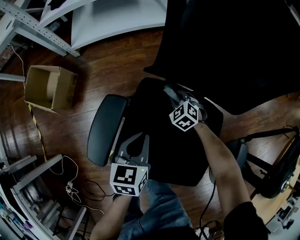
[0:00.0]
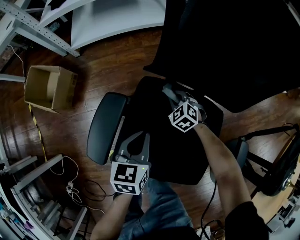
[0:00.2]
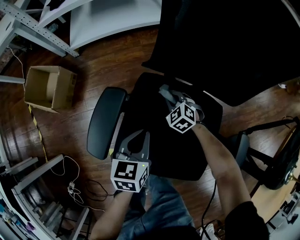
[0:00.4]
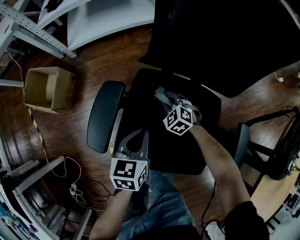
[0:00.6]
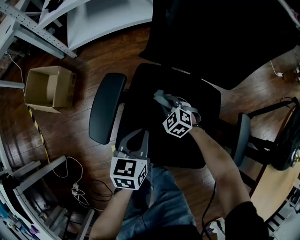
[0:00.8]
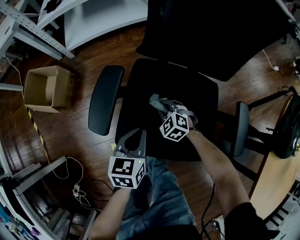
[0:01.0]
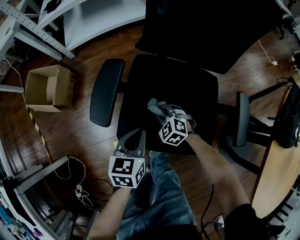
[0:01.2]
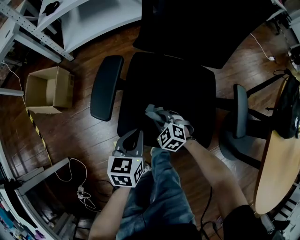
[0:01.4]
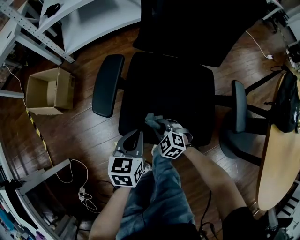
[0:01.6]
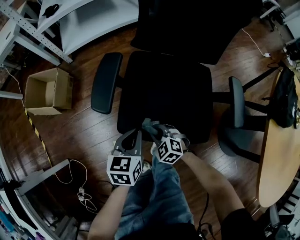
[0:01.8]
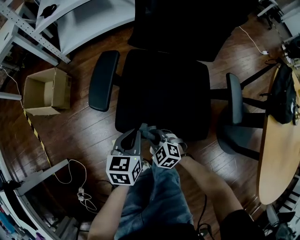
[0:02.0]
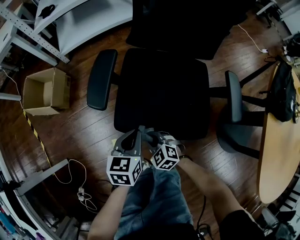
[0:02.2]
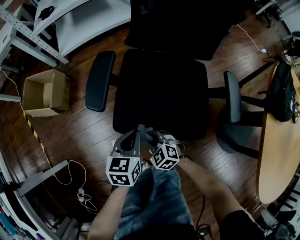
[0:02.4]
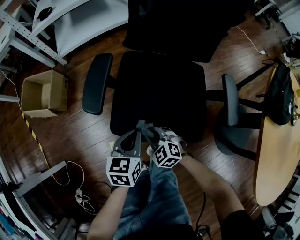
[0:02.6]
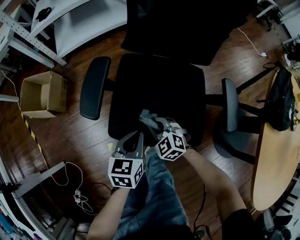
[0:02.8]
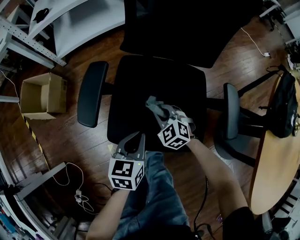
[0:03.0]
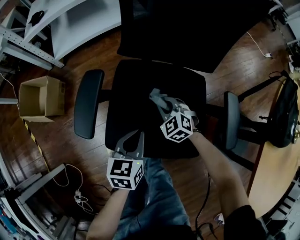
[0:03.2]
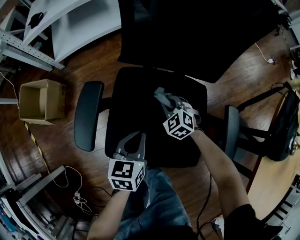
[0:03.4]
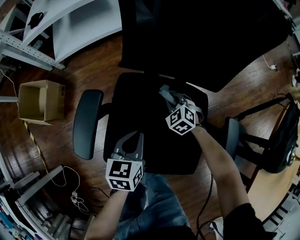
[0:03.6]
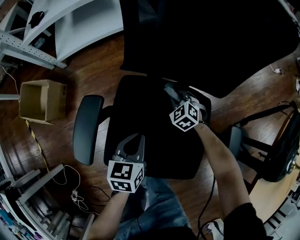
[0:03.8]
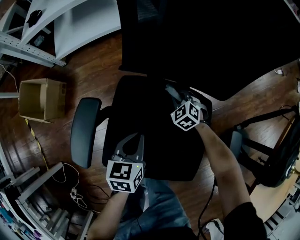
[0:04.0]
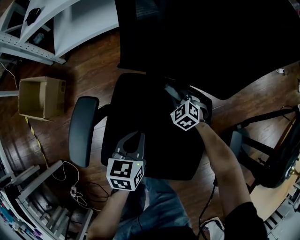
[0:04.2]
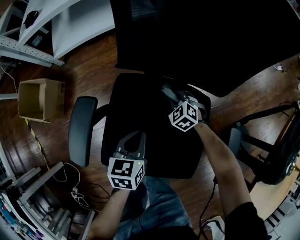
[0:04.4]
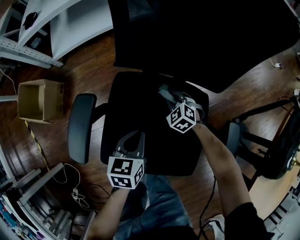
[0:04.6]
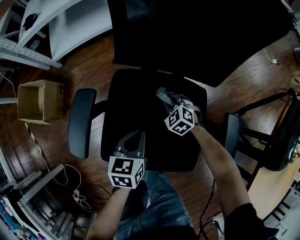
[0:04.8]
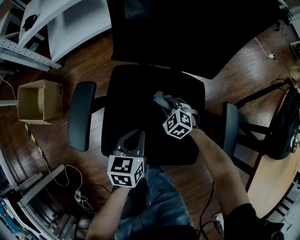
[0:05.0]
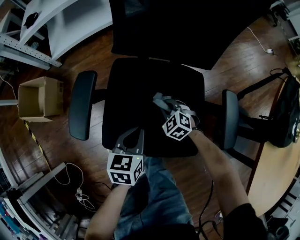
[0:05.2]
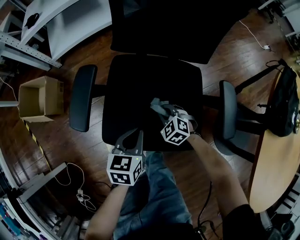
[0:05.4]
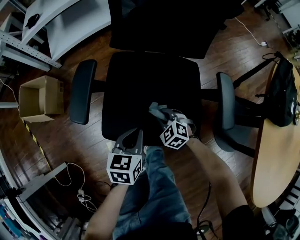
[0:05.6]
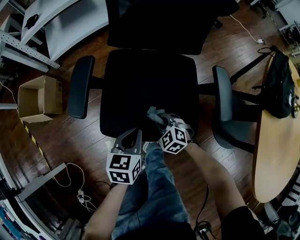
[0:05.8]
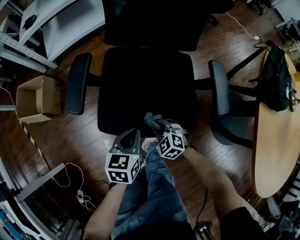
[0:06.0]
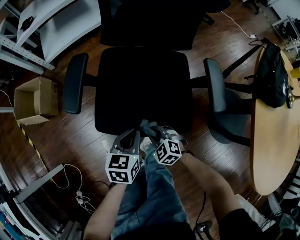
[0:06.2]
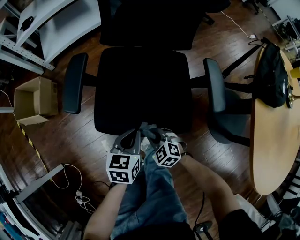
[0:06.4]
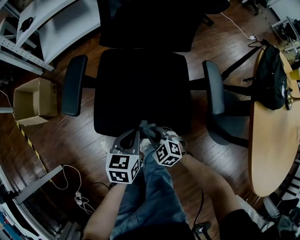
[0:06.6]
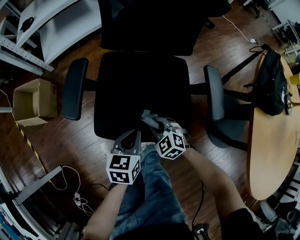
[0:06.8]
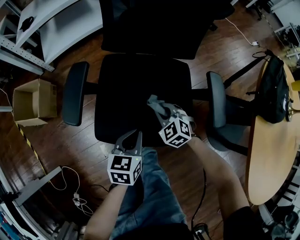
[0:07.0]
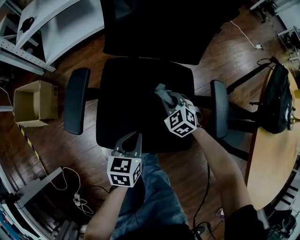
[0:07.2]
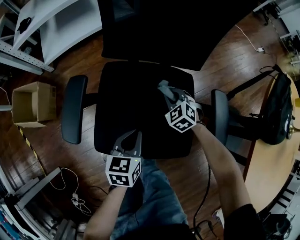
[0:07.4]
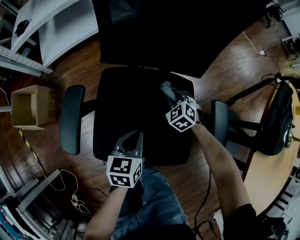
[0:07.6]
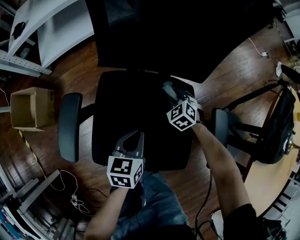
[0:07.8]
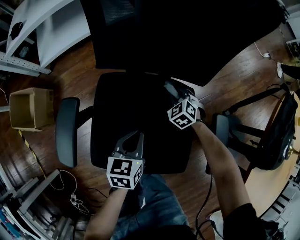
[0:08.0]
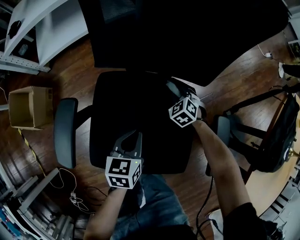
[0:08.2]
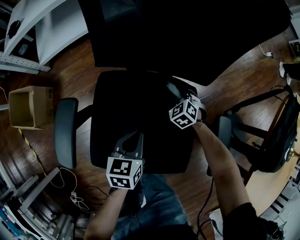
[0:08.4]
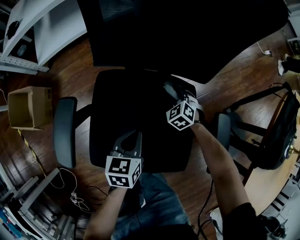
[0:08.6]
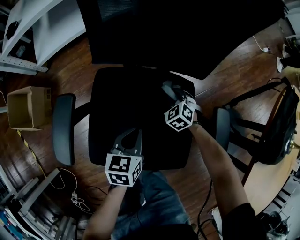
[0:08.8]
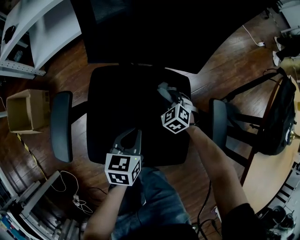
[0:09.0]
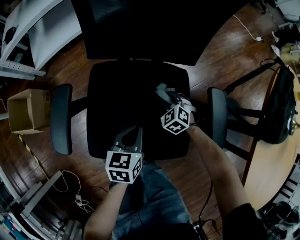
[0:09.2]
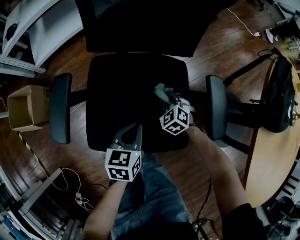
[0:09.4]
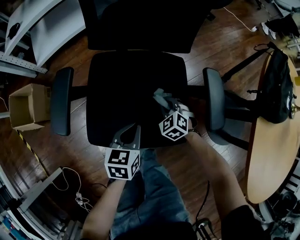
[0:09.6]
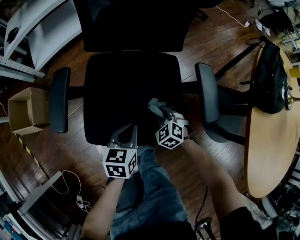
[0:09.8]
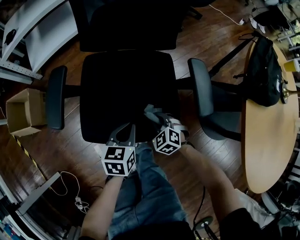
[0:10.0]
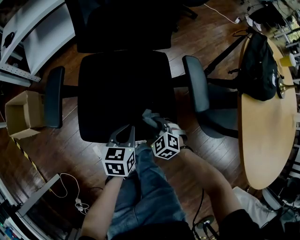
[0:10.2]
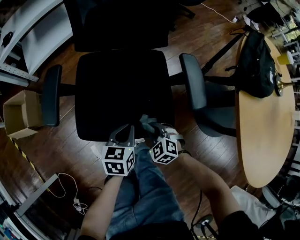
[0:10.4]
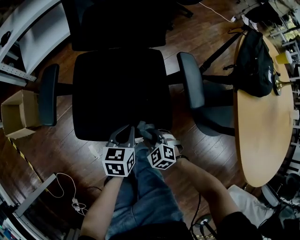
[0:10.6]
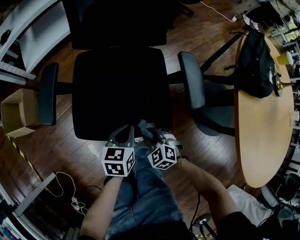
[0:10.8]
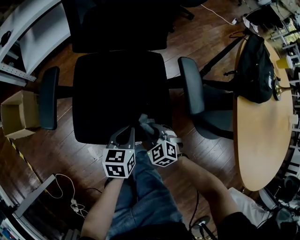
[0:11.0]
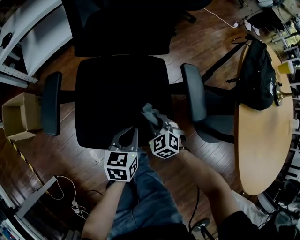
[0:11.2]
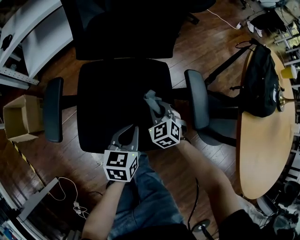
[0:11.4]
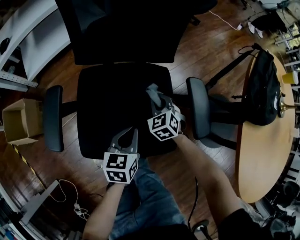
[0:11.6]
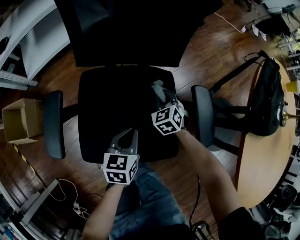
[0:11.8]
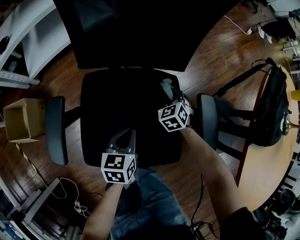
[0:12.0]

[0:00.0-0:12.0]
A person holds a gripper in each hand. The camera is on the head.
0:00.0 to 0:01.6: The left gripper moves backward, roughly 20 cm; the right gripper shifts approximately 30 cm backward.
0:01.6 to 0:03.0: The left gripper is displaced to the right by approximately 5 cm. The right gripper shifts roughly 10 cm forward and to the right.
0:03.0 to 0:04.4: The left gripper travels forward by roughly 15 cm, while the right gripper moves forward, to the right and downward, some 25 cm.
0:04.4 to 0:06.0: The right gripper goes about 35 cm backward, while the left gripper travels backward by approximately 20 cm.
0:06.0 to 0:07.6: The left gripper moves forward, some 15 cm. The right gripper heads forward and to the right, covering roughly 30 cm.
0:07.6 to 0:09.0: The right gripper moves approximately 5 cm forward and comes back.
0:09.0 to 0:10.4: The left gripper travels backward by about 15 cm. Meanwhile the right gripper heads backward, covering some 30 cm.
0:10.4 to 0:12.0: The left gripper shifts approximately 15 cm forward. Meanwhile the right gripper moves forward, approximately 35 cm, and changes its angle by about 20 degrees.

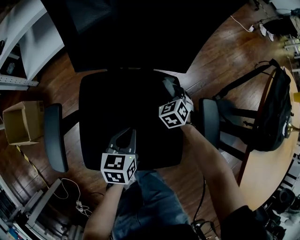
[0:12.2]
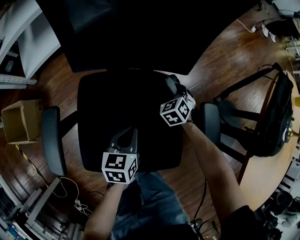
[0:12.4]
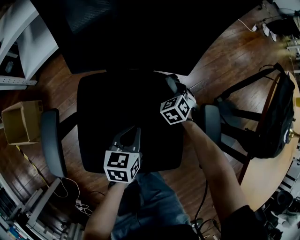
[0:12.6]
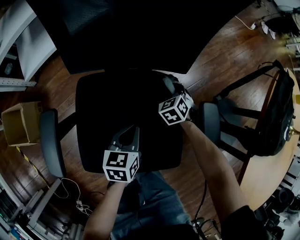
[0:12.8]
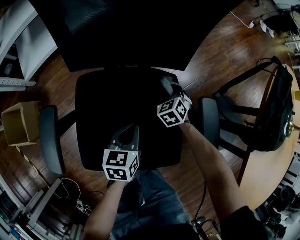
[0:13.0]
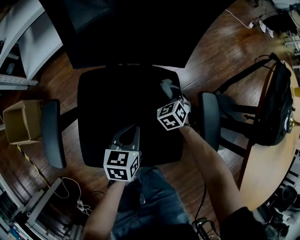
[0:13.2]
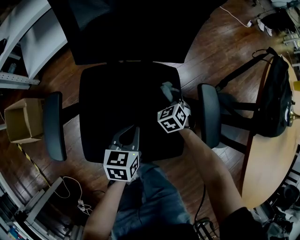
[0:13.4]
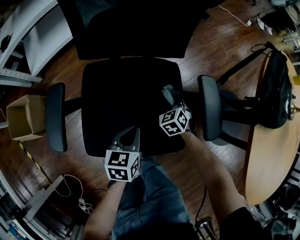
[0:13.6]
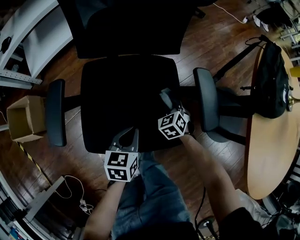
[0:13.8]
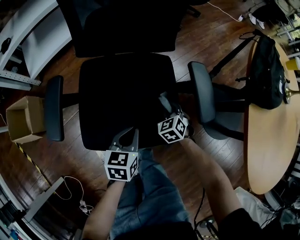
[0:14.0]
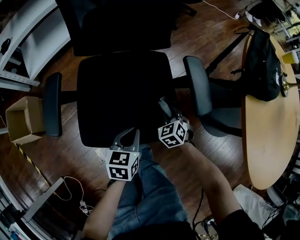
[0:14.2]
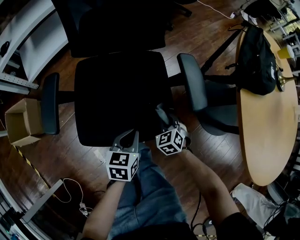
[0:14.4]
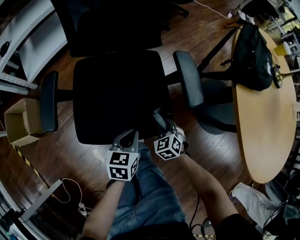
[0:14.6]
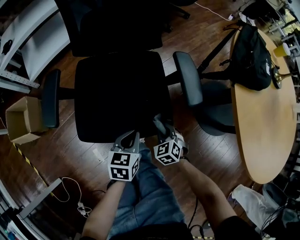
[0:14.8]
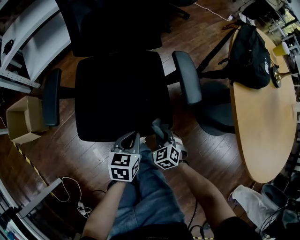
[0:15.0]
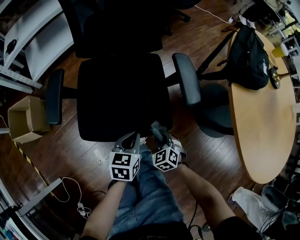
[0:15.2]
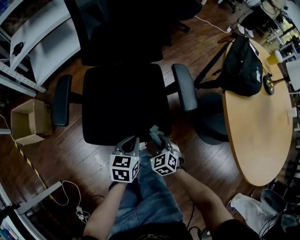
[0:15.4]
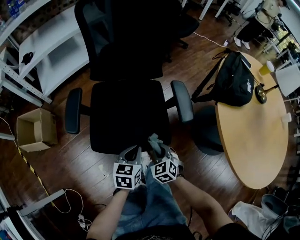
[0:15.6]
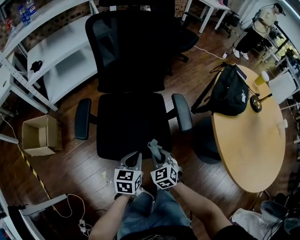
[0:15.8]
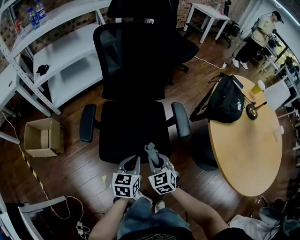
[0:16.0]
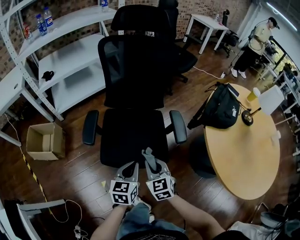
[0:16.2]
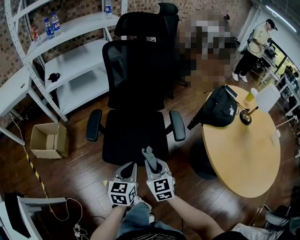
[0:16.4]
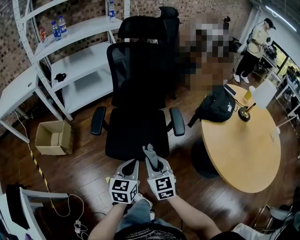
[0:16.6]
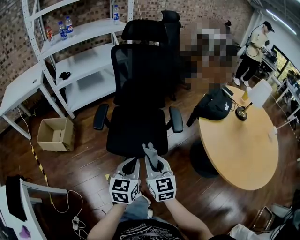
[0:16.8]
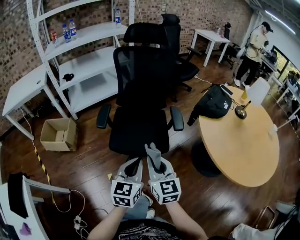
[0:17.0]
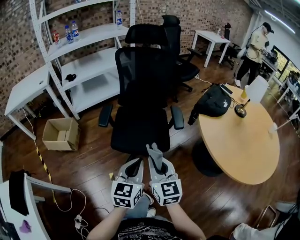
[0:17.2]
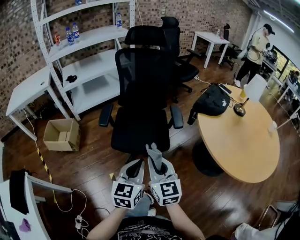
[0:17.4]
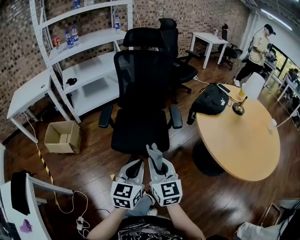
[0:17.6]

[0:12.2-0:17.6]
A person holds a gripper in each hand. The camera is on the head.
0:12.2 to 0:13.6: The right gripper moves backward, approximately 10 cm. Meanwhile the left gripper travels backward by roughly 5 cm.
0:13.6 to 0:15.0: The left gripper heads backward and to the right, covering some 15 cm. Meanwhile the right gripper shifts roughly 25 cm backward.
0:15.0 to 0:16.2: Both grippers travel together upward, about 25 cm. The right gripper rotates roughly 30 degrees.
0:16.2 to 0:17.6: Both grippers travel together backward and upward, roughly 30 cm. The right gripper swivels about 30 degrees.

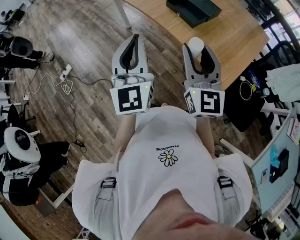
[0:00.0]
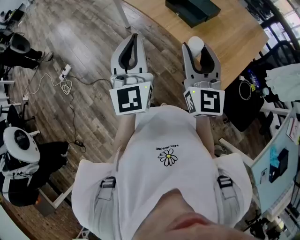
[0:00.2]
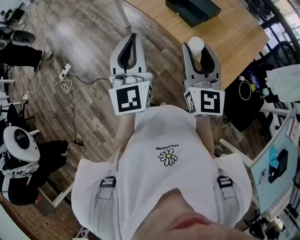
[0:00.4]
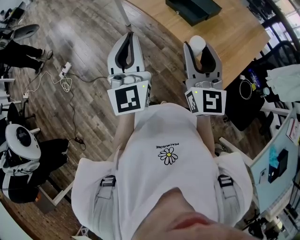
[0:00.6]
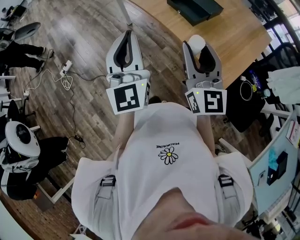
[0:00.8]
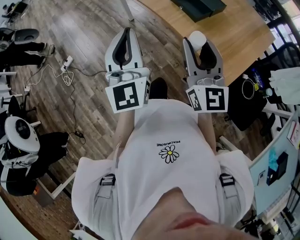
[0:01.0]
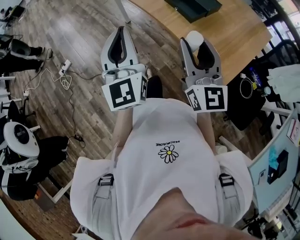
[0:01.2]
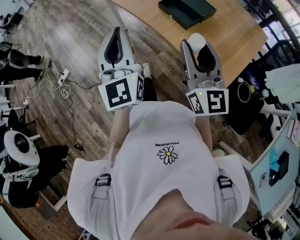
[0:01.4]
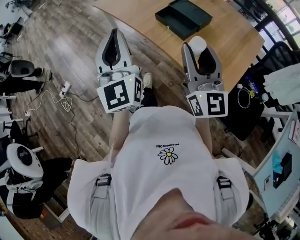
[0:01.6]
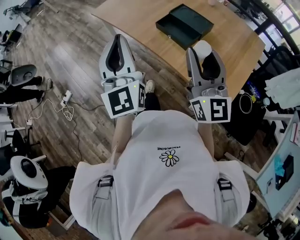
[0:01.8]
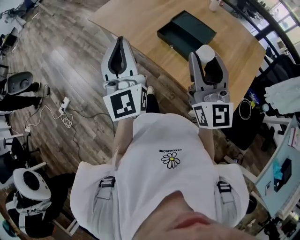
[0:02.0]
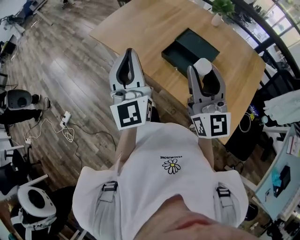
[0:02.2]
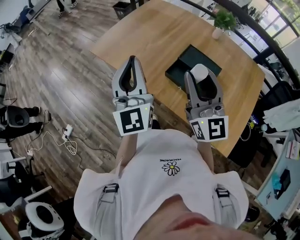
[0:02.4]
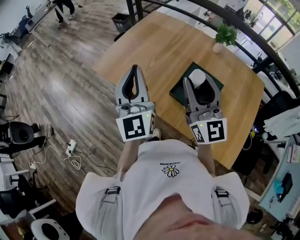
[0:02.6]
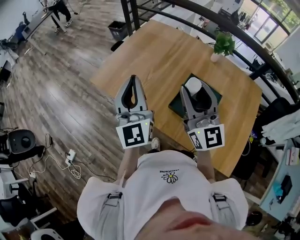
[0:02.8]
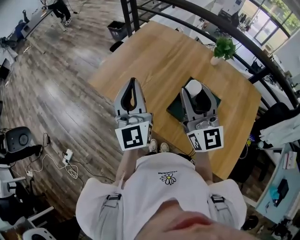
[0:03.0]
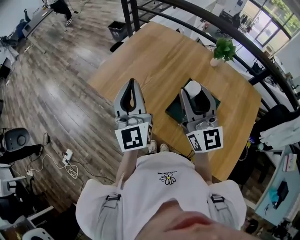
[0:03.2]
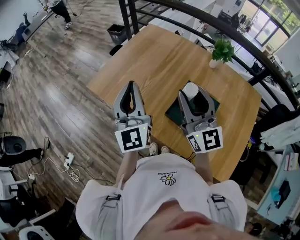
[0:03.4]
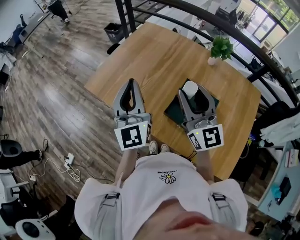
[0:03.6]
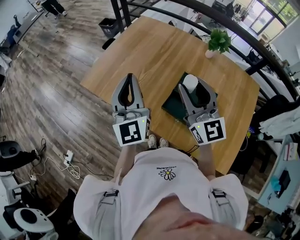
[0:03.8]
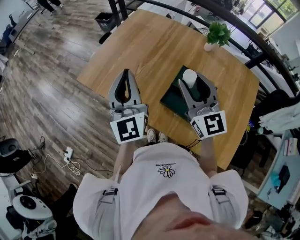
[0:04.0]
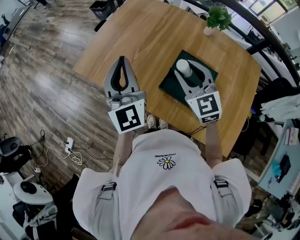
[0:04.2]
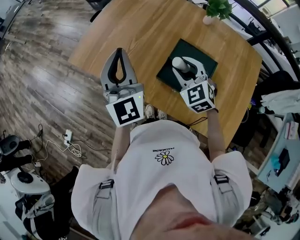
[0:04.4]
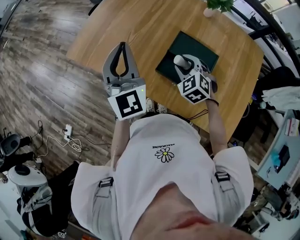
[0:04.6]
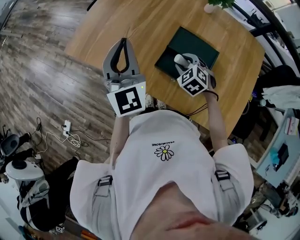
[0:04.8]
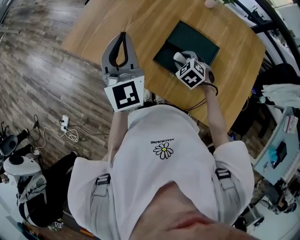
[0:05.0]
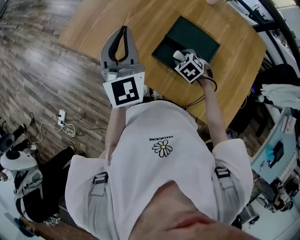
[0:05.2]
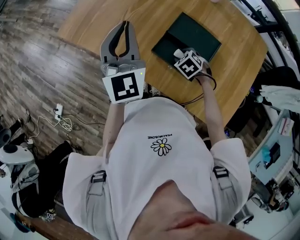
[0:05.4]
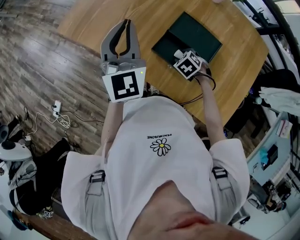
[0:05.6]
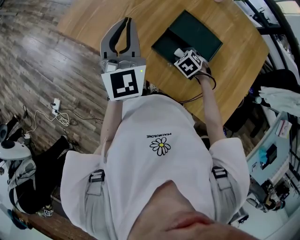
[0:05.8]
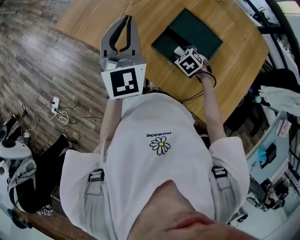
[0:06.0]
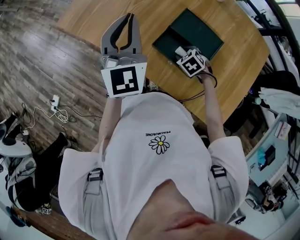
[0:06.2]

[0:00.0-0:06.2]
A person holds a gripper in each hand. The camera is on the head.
0:00.0 to 0:01.6: The right gripper shifts roughly 5 cm to the right, while the left gripper moves forward, roughly 10 cm.
0:01.6 to 0:03.2: The grippers both shift forward by about 40 cm.
0:03.2 to 0:04.6: The right gripper is displaced downward by roughly 25 cm, and points its fingers some 60 degrees further downward. Meanwhile the left gripper heads to the right, covering some 5 cm.
0:04.6 to 0:06.2: The right gripper shifts about 15 cm downward, and swivels roughly 30 degrees.
